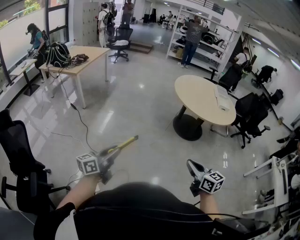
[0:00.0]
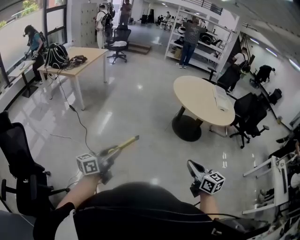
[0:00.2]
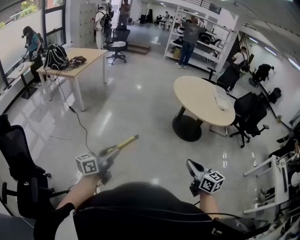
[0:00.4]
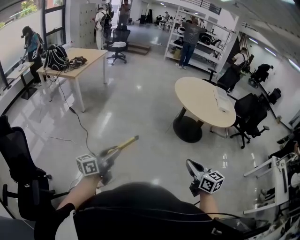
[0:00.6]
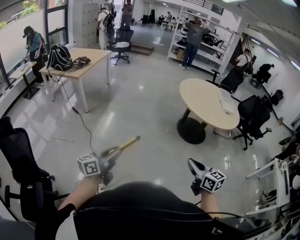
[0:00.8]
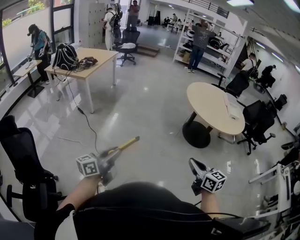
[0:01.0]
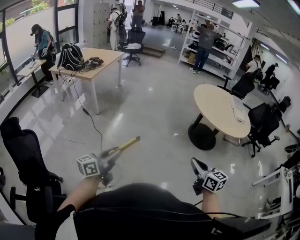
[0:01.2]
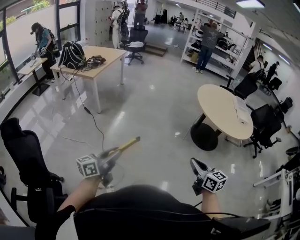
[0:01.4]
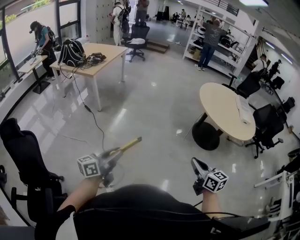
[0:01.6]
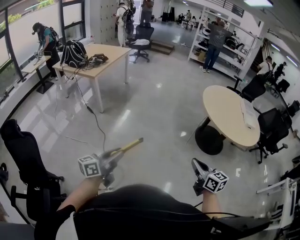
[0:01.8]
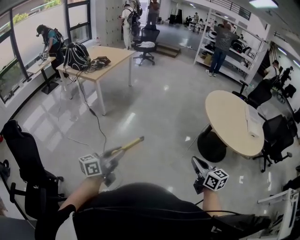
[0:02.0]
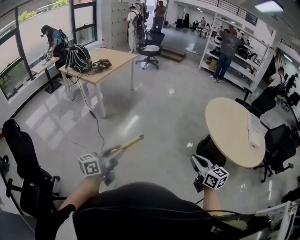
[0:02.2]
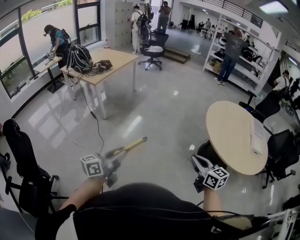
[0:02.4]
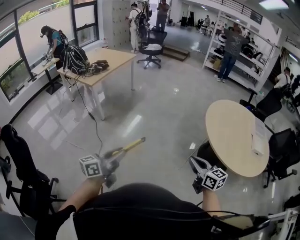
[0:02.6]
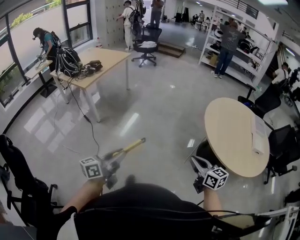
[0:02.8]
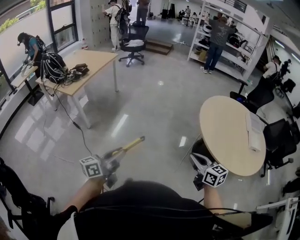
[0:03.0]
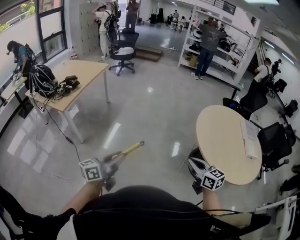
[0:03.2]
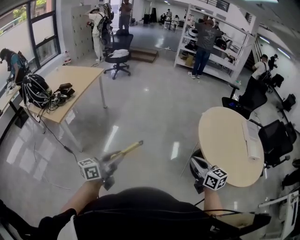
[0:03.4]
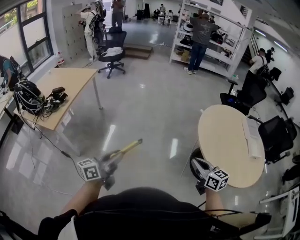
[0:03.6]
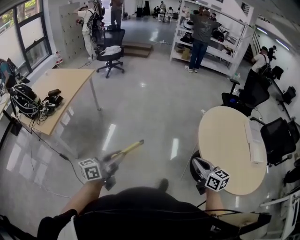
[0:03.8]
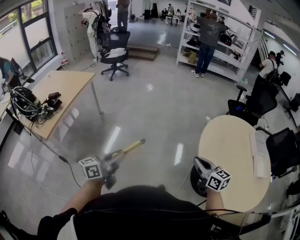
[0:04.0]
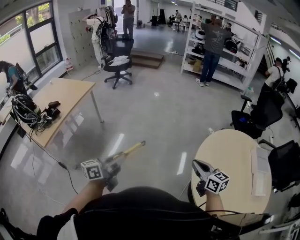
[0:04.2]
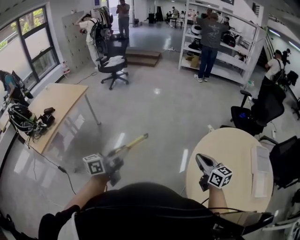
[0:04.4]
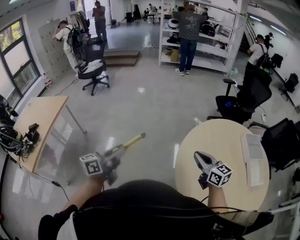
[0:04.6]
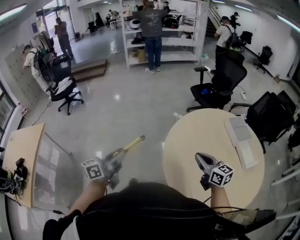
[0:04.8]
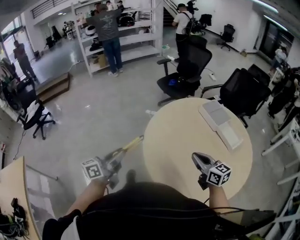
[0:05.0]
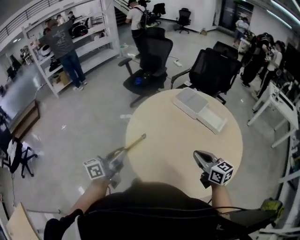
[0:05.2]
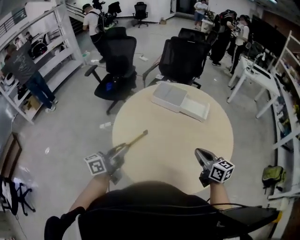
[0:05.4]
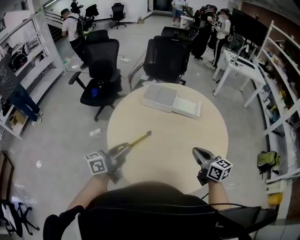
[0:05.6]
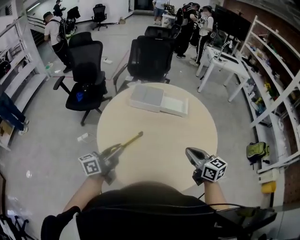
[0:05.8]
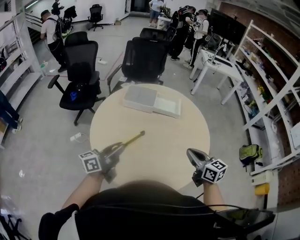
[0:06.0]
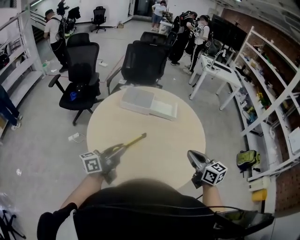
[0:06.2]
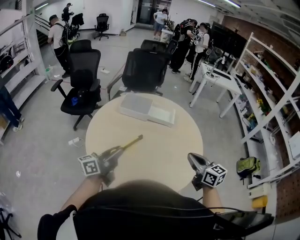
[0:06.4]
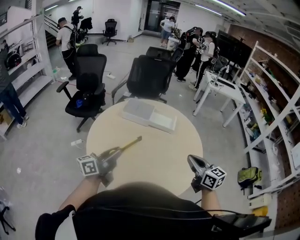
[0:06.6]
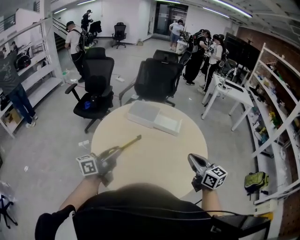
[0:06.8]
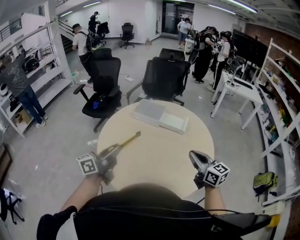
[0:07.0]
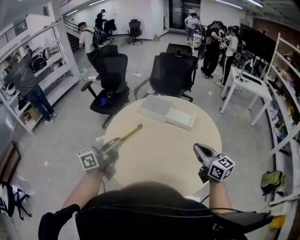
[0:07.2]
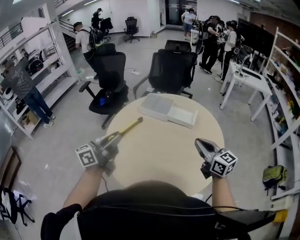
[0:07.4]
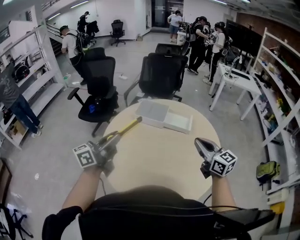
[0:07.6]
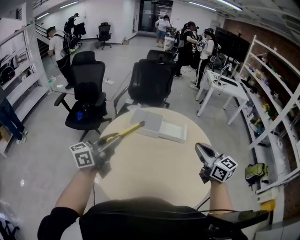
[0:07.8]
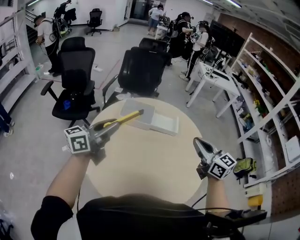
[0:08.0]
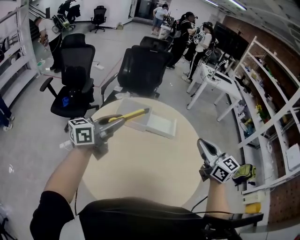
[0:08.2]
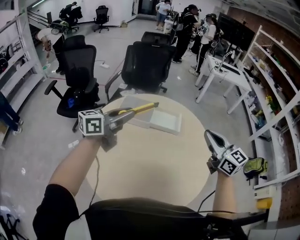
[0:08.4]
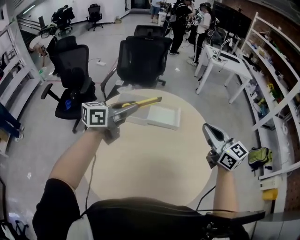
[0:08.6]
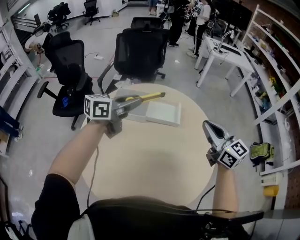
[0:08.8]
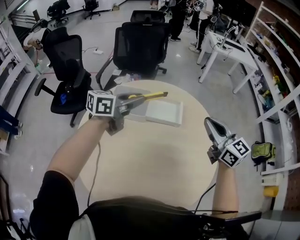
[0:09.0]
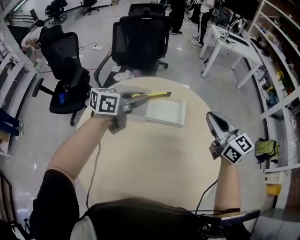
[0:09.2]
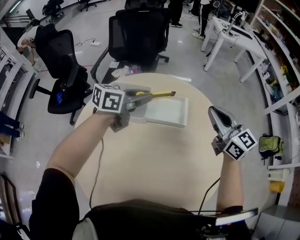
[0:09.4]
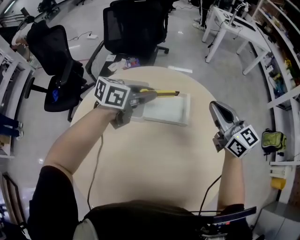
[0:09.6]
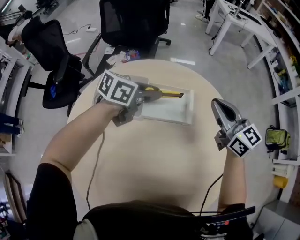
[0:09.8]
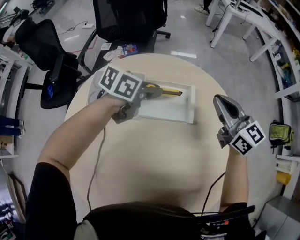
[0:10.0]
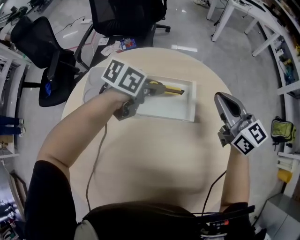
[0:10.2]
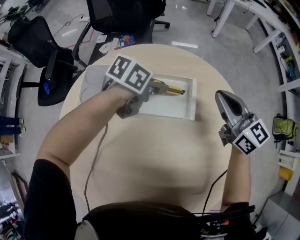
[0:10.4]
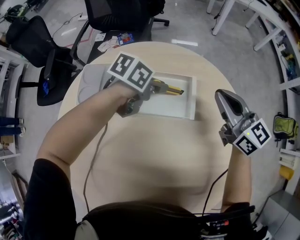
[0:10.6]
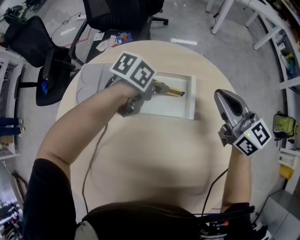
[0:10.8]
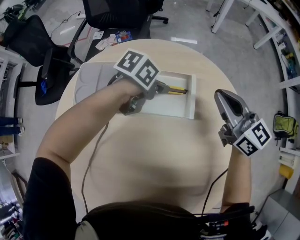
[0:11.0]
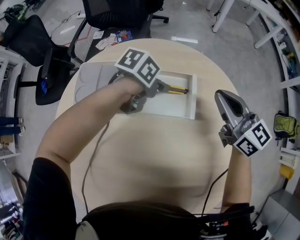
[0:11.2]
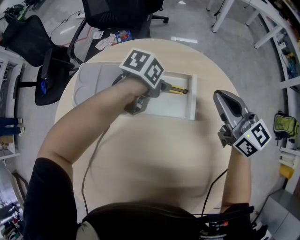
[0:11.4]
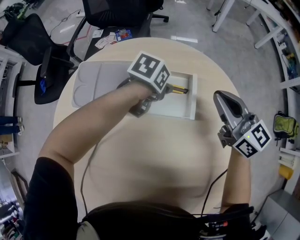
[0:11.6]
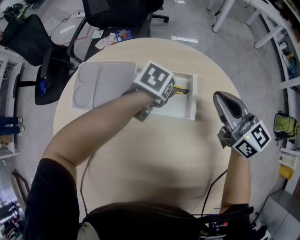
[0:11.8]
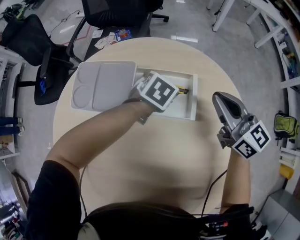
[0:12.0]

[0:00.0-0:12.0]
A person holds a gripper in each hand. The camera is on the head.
0:00.0 to 0:01.6: The two grippers go about 25 cm to the left and forward.
0:01.6 to 0:03.0: Both grippers are carried forward and to the right, approximately 40 cm.
0:03.0 to 0:04.4: The two grippers travel together, forward, about 60 cm.
0:04.4 to 0:06.0: The right gripper shifts by about 30 cm, and rotates some 90 degrees. Meanwhile the left gripper shifts by some 60 cm, and turns by some 100 degrees.
0:06.0 to 0:07.6: The right gripper is displaced forward and upward by about 10 cm. Meanwhile the left gripper goes approximately 10 cm upward.
0:07.6 to 0:09.0: The left gripper heads forward, covering approximately 35 cm, and rotates roughly 30 degrees; the right gripper is displaced forward by some 20 cm.
0:09.0 to 0:10.4: The grippers both shift downward and forward by approximately 30 cm. The left gripper changes its angle by roughly 40 degrees.
0:10.4 to 0:12.0: The left gripper is displaced downward by roughly 10 cm, changes its angle by approximately 40 degrees, and opens up.

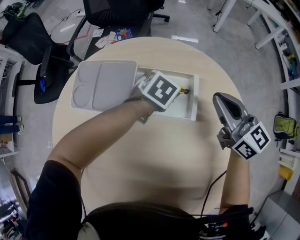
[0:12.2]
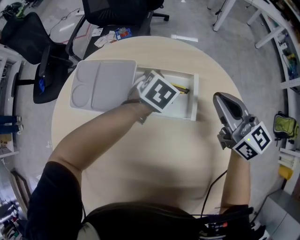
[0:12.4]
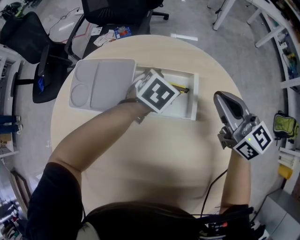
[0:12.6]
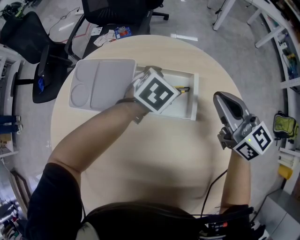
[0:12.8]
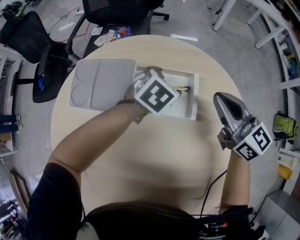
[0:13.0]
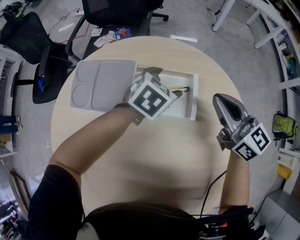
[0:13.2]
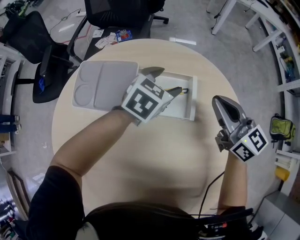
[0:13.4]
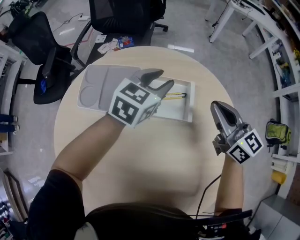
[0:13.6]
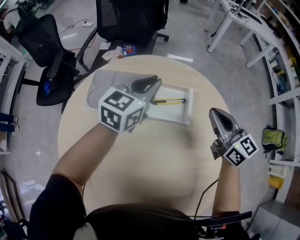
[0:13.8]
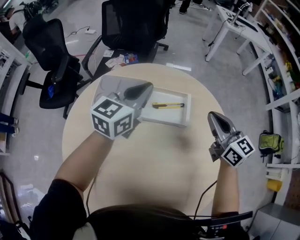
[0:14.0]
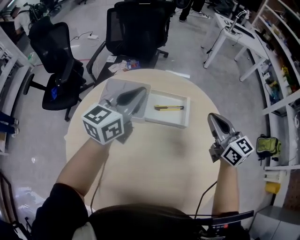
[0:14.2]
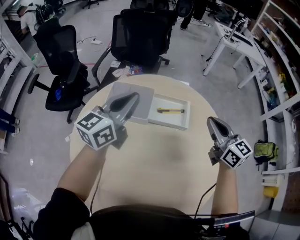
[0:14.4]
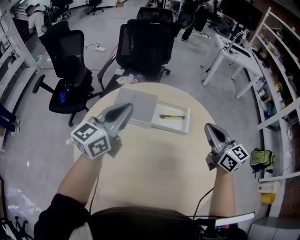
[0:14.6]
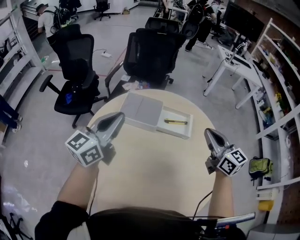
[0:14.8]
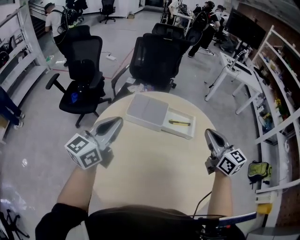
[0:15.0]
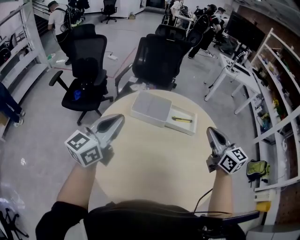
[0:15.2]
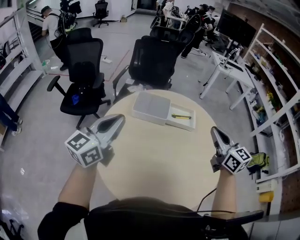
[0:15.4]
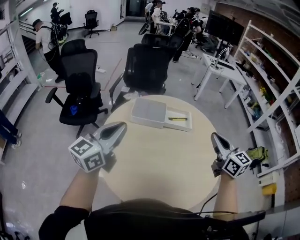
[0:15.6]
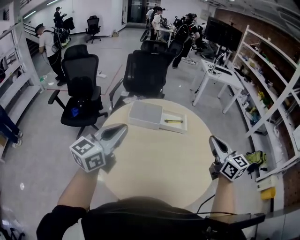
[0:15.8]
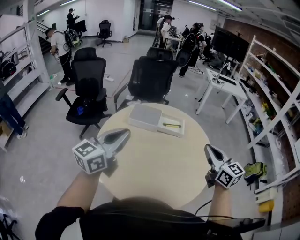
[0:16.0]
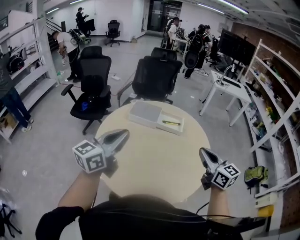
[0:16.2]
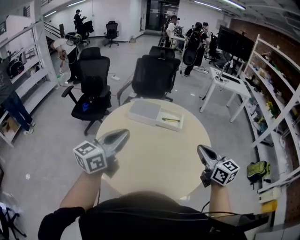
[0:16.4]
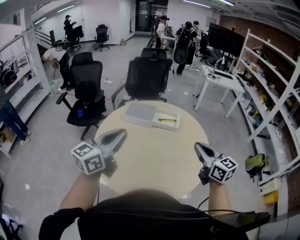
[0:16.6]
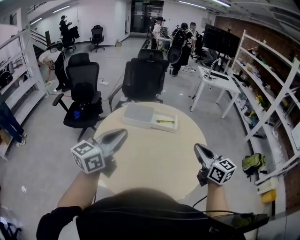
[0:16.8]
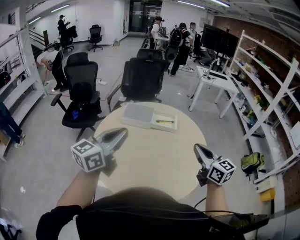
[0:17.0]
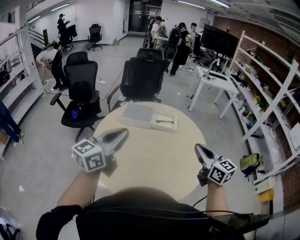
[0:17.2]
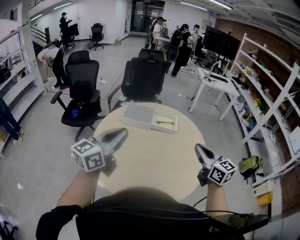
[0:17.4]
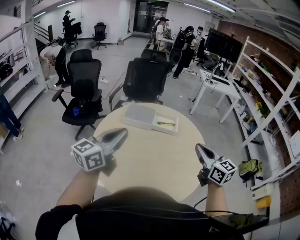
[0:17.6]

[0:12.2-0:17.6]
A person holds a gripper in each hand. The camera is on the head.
0:12.2 to 0:13.6: The left gripper heads upward, covering some 15 cm, points its fingers approximately 30 degrees further upward, and closes up.
0:13.6 to 0:15.0: The right gripper moves upward, backward and to the left, approximately 30 cm. Meanwhile the left gripper travels backward, to the left and upward by roughly 50 cm, swivels some 40 degrees, and closes up.
0:15.0 to 0:16.2: Both grippers move backward, roughly 25 cm.
0:16.2 to 0:17.6: The grippers make only small movements.

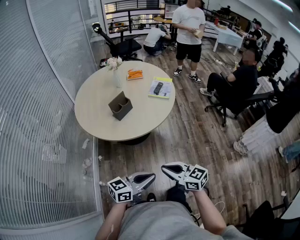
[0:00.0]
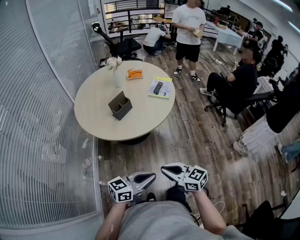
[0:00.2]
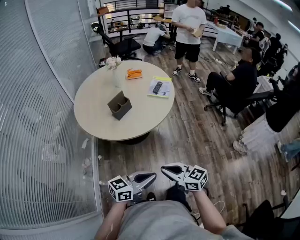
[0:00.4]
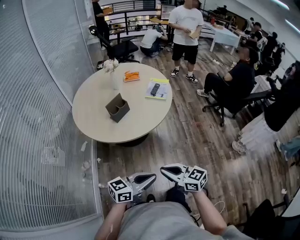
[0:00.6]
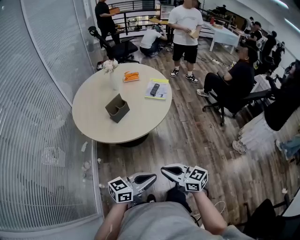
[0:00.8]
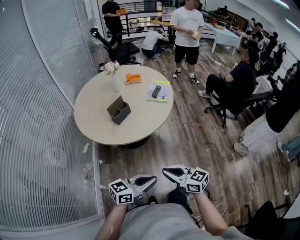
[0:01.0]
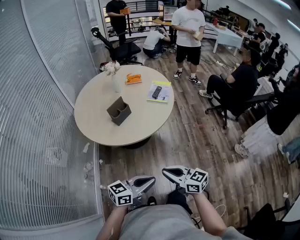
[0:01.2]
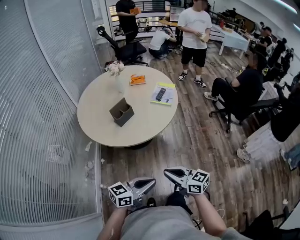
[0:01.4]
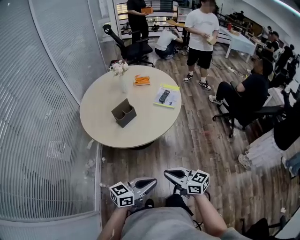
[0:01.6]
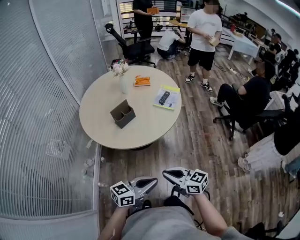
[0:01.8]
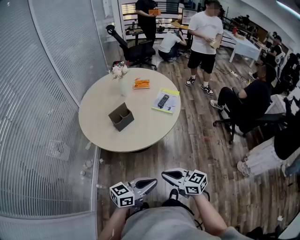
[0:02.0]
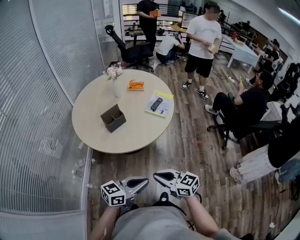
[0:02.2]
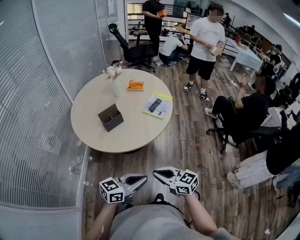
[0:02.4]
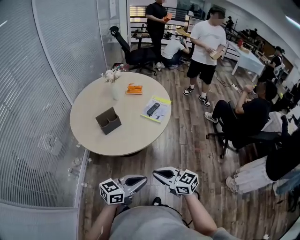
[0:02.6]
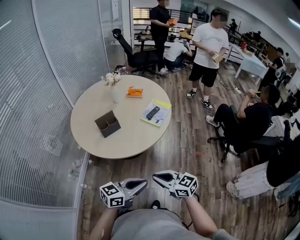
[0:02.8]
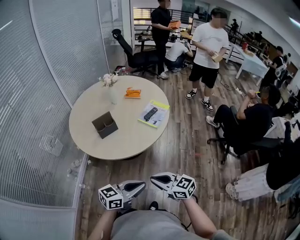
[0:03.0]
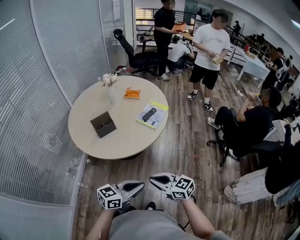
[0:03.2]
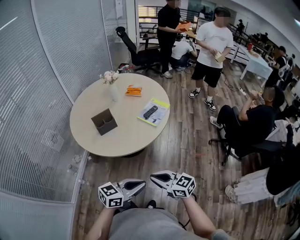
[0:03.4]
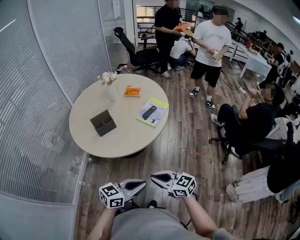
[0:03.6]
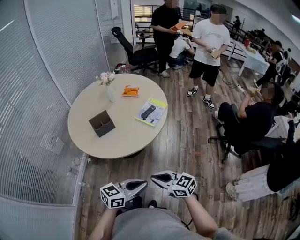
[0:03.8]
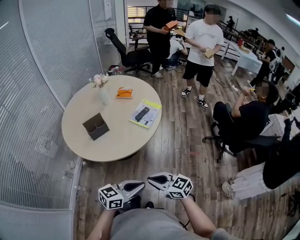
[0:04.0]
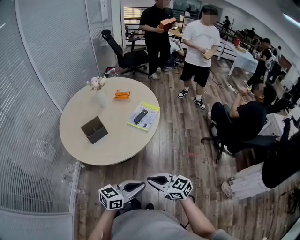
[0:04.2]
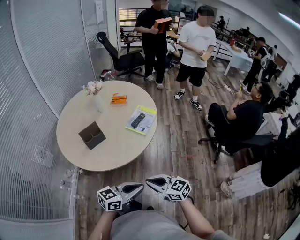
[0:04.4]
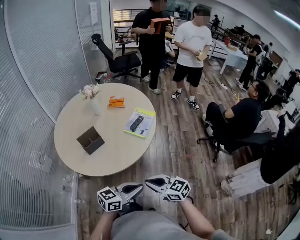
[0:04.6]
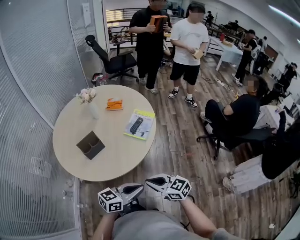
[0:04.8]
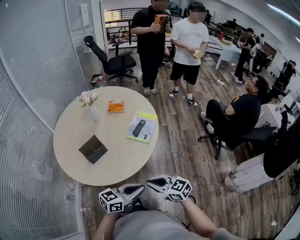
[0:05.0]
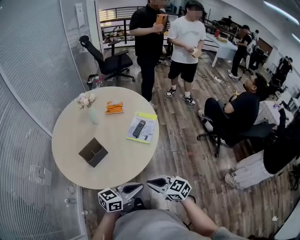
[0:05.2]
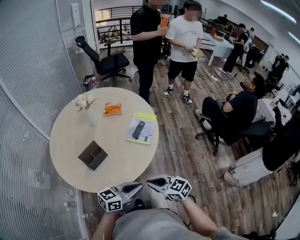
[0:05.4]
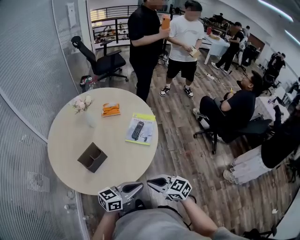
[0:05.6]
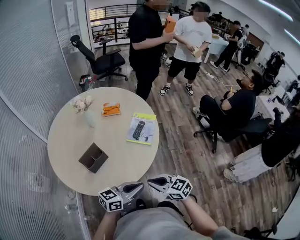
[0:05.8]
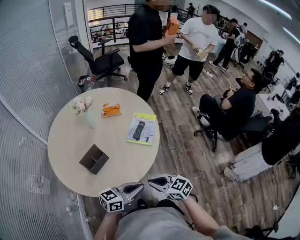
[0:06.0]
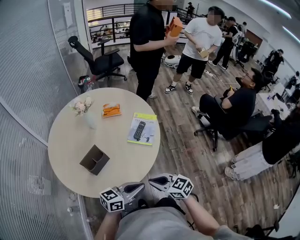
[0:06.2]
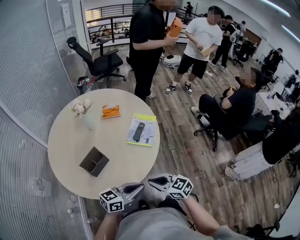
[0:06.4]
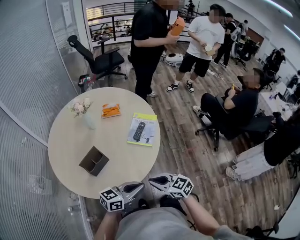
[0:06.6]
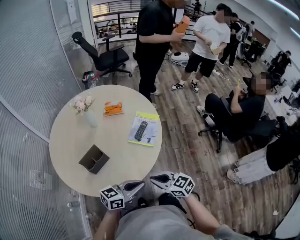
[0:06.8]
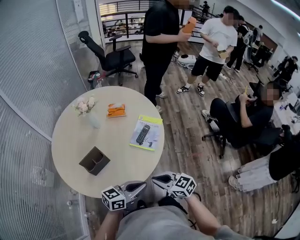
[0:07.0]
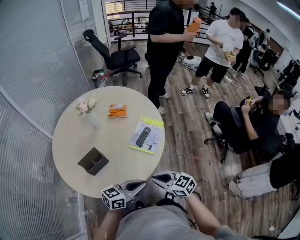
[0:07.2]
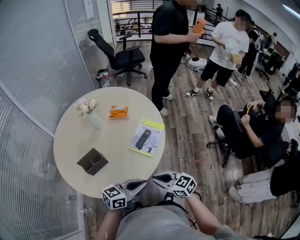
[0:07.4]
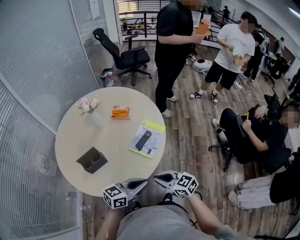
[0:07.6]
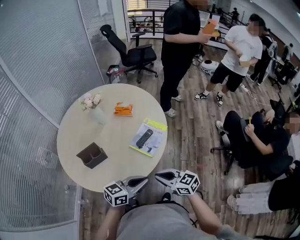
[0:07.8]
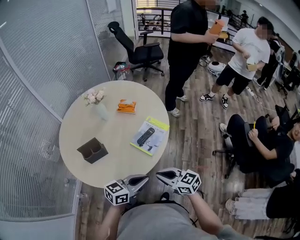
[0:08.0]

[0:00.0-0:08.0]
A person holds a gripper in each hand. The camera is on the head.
0:00.0 to 0:01.6: The two grippers go about 5 cm forward.
0:01.6 to 0:03.2: The two grippers go about 20 cm to the right and forward.
0:03.2 to 0:04.8: The left gripper moves some 10 cm. Meanwhile the right gripper moves roughly 10 cm.
0:04.8 to 0:06.4: The right gripper ends up roughly 10 cm from where it was; the left gripper shifts by approximately 15 cm.
0:06.4 to 0:08.0: The left gripper changes place by roughly 15 cm, and changes its angle by approximately 20 degrees, while the right gripper shifts by approximately 20 cm.
